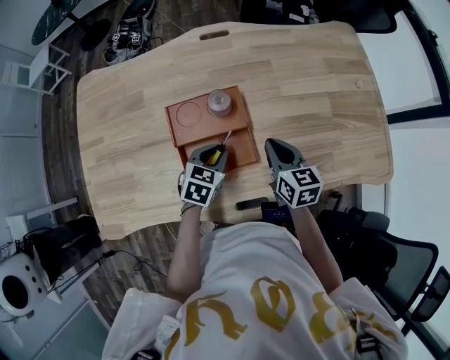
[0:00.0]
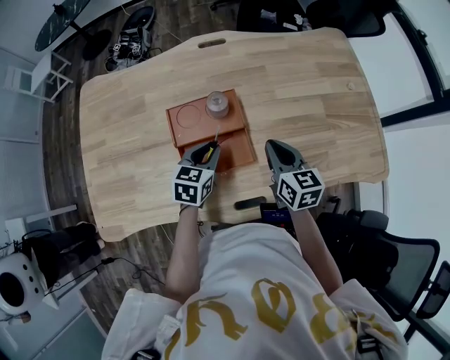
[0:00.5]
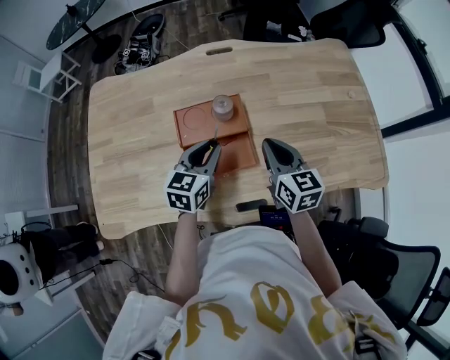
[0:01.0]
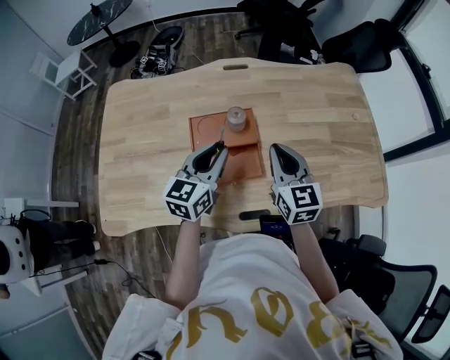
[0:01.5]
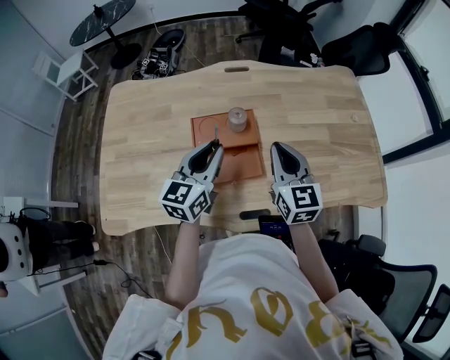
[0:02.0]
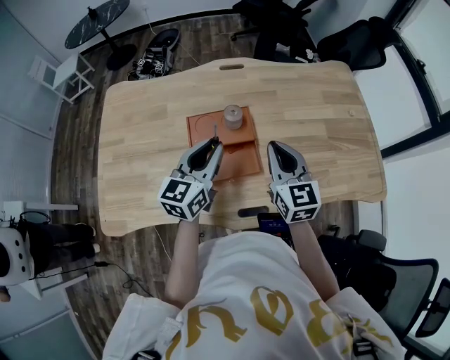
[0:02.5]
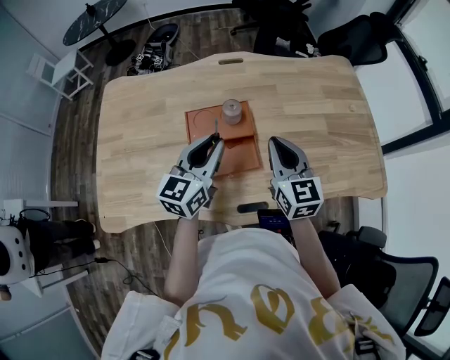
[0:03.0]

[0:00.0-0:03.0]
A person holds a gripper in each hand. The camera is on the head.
0:00.0 to 0:01.5: The grippers both shift upward by roughly 15 cm. The left gripper points its fingers roughly 30 degrees further upward; the right gripper swivels approximately 20 degrees.
0:01.5 to 0:03.0: There are only small adjustments of the grippers.

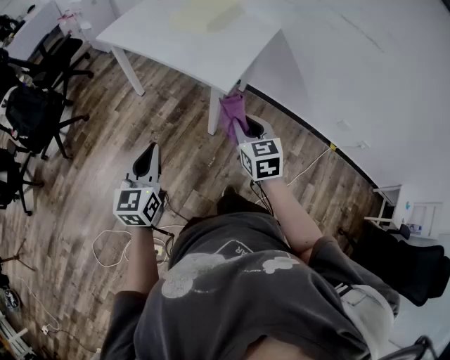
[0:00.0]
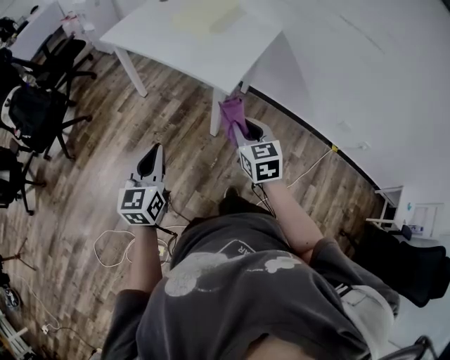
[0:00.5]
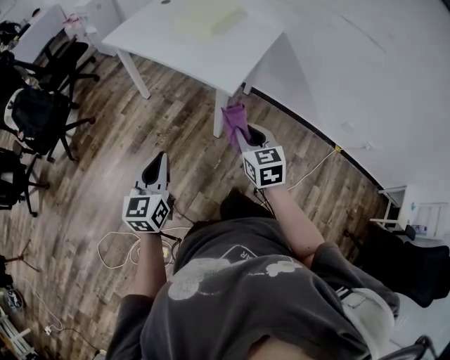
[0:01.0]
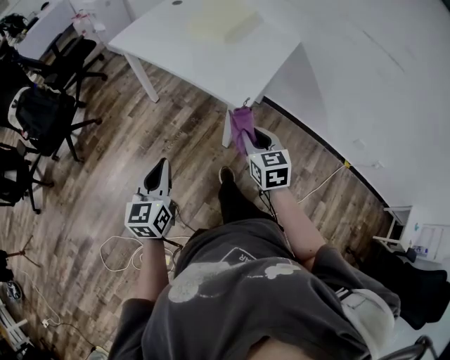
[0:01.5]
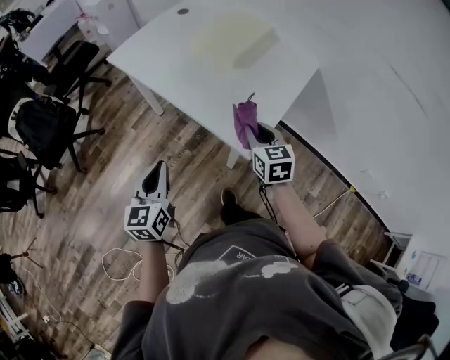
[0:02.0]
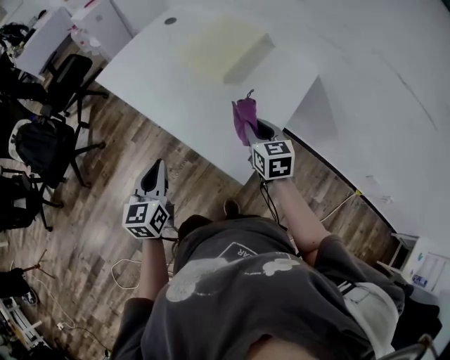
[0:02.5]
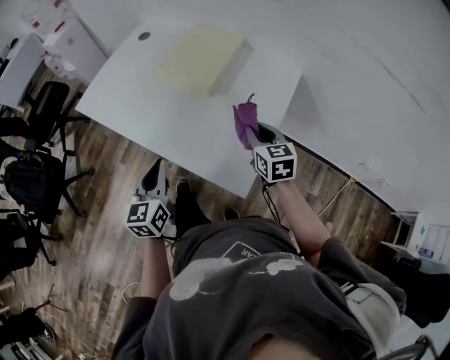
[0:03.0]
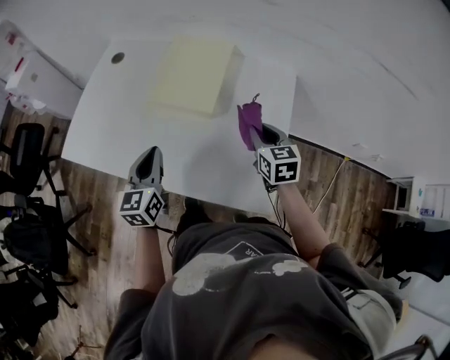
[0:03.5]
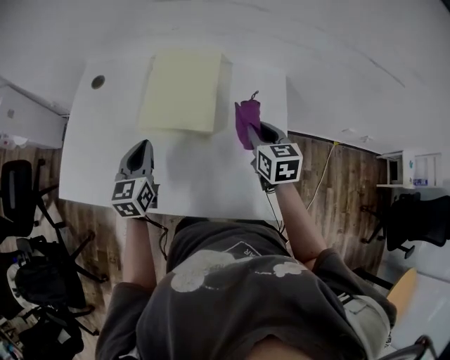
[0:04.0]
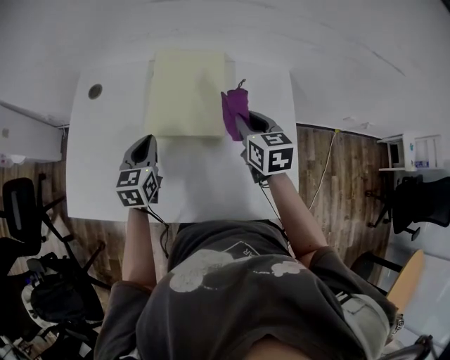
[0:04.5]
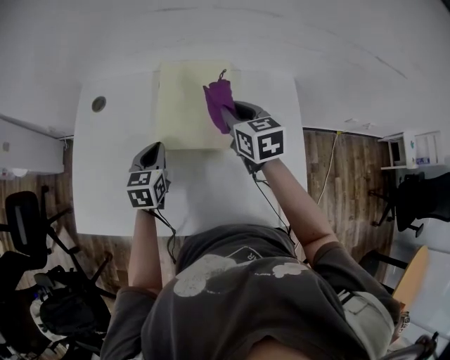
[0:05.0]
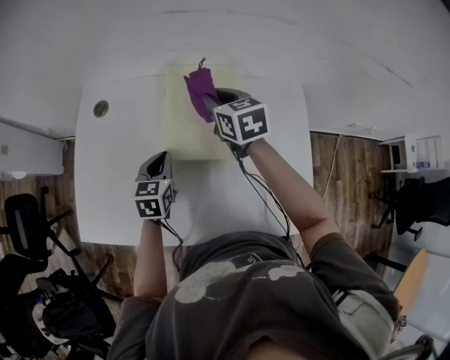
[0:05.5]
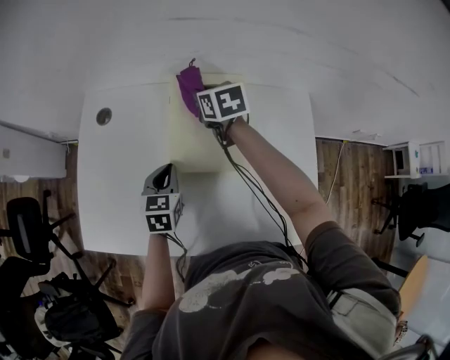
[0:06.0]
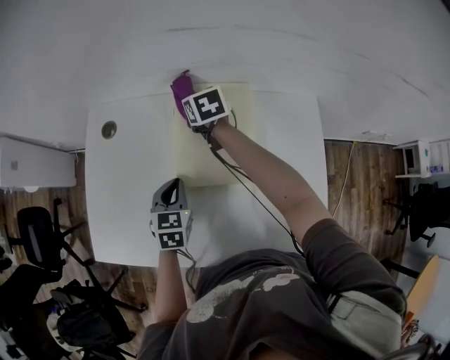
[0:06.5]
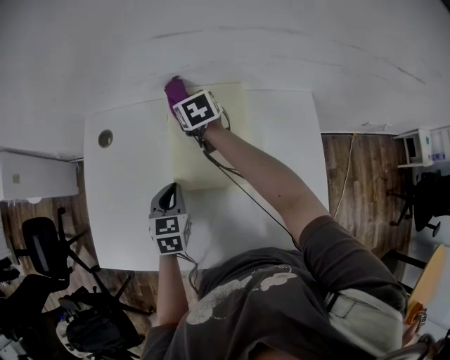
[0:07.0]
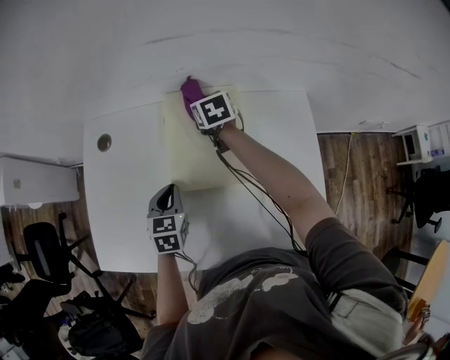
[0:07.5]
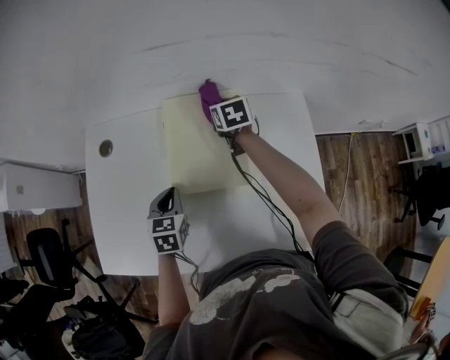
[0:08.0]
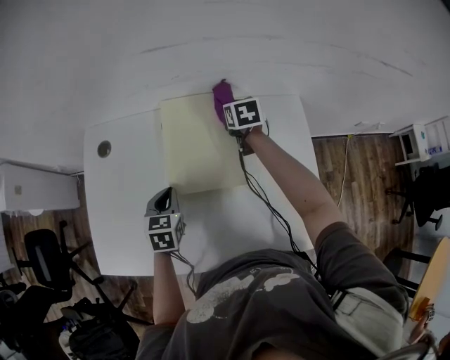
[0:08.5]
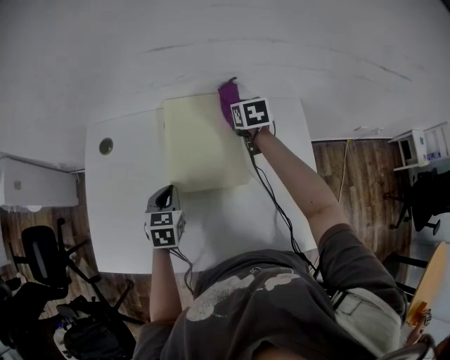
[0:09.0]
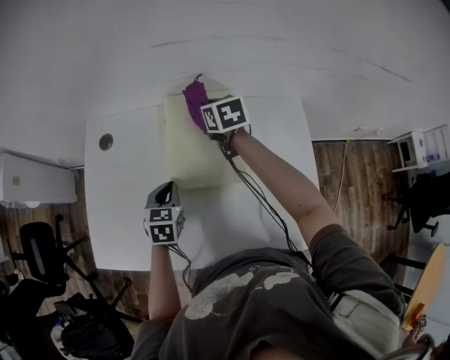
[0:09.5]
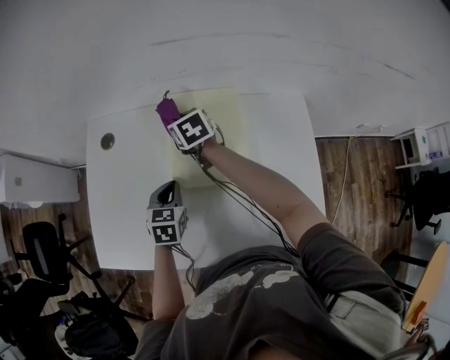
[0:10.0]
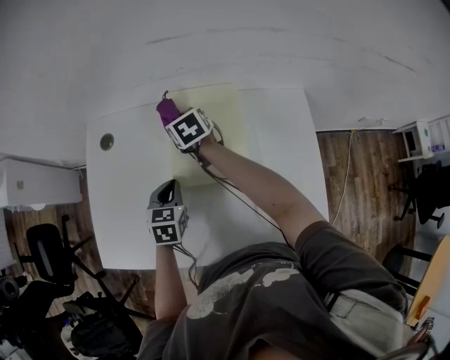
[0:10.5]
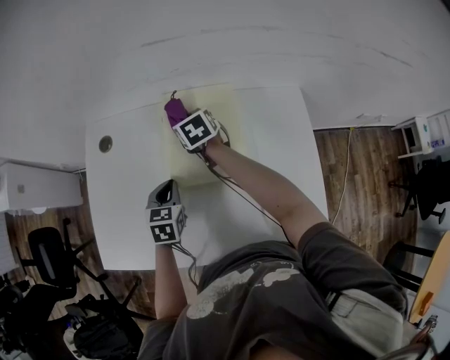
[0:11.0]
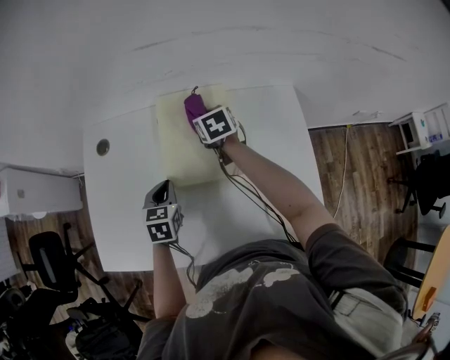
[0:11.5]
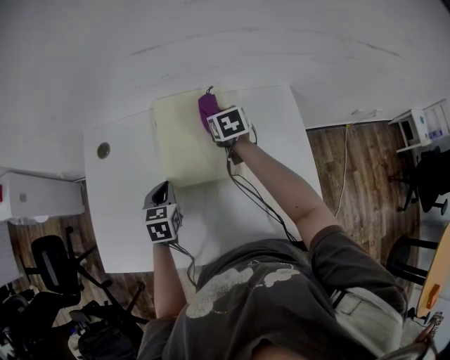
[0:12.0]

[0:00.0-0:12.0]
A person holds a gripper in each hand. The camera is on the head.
0:00.0 to 0:02.0: The two grippers go roughly 25 cm forward.
0:02.0 to 0:04.0: The left gripper moves approximately 50 cm, and swivels roughly 30 degrees, while the right gripper ends up approximately 30 cm from where it was, and changes its angle by roughly 40 degrees.
0:04.0 to 0:06.0: The right gripper heads forward and to the left, covering approximately 35 cm; the left gripper moves forward and downward, about 10 cm, and swivels some 20 degrees.
0:06.0 to 0:08.0: The right gripper moves to the right, about 10 cm.
0:08.0 to 0:10.0: The right gripper moves to the left, about 15 cm.
0:10.0 to 0:12.0: The right gripper heads to the right, covering some 15 cm.

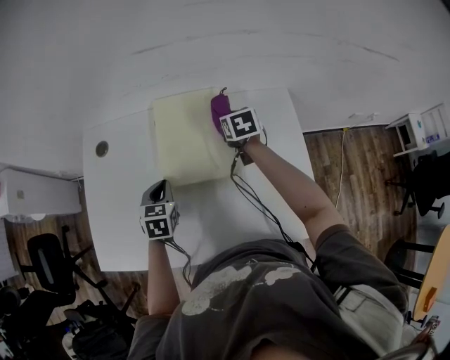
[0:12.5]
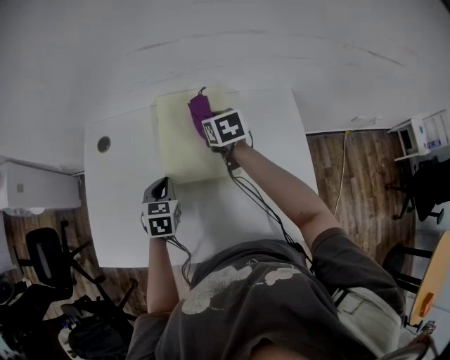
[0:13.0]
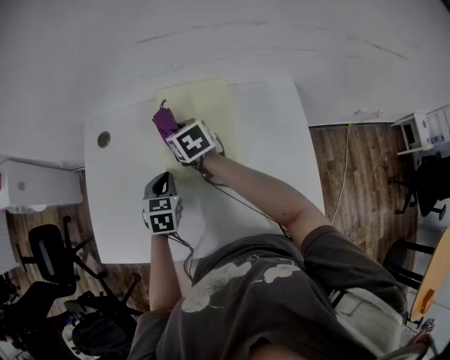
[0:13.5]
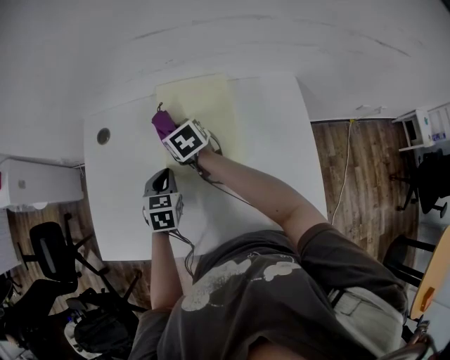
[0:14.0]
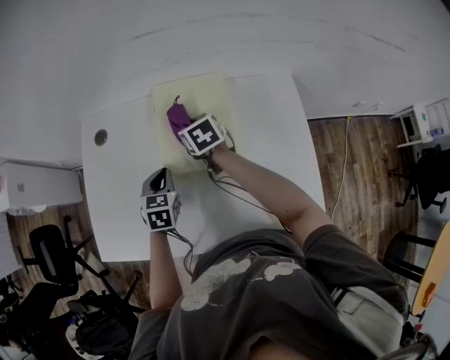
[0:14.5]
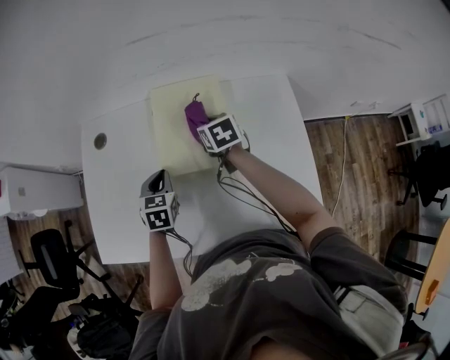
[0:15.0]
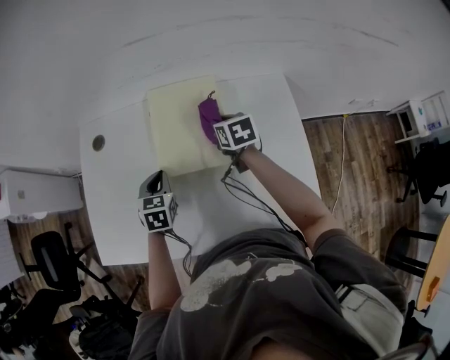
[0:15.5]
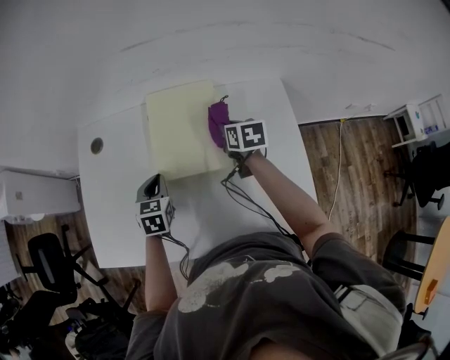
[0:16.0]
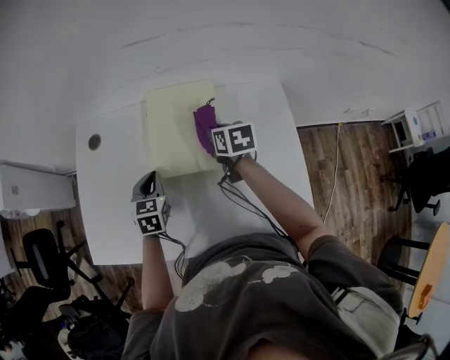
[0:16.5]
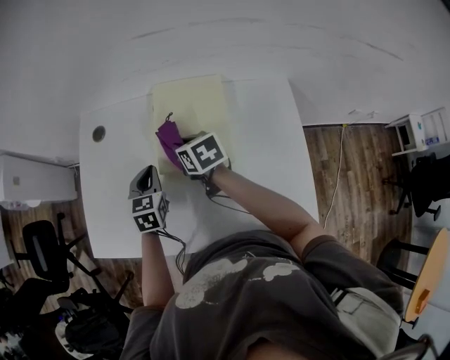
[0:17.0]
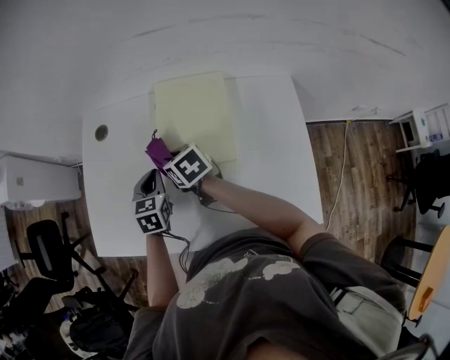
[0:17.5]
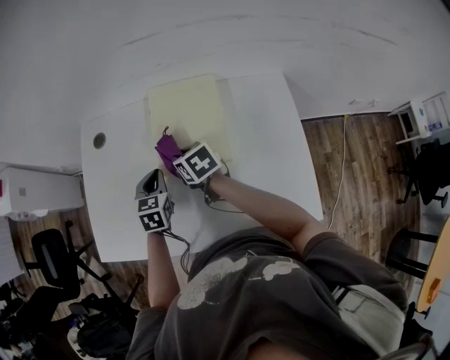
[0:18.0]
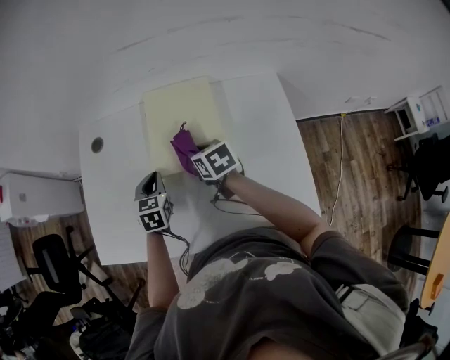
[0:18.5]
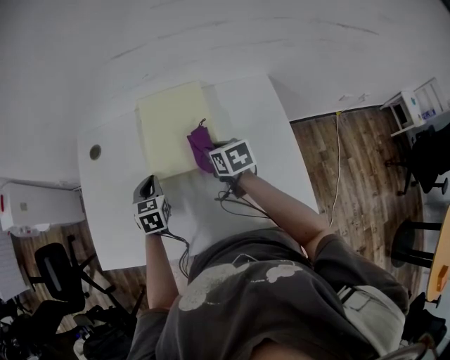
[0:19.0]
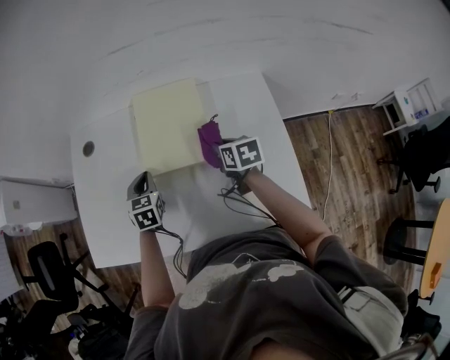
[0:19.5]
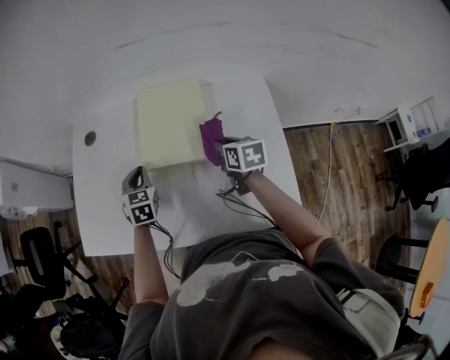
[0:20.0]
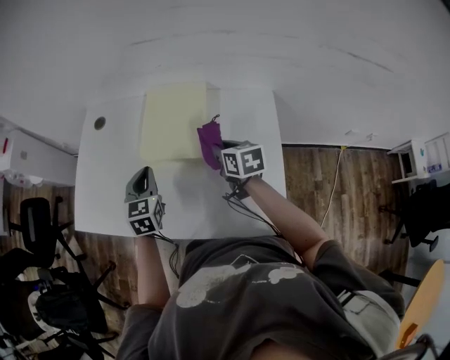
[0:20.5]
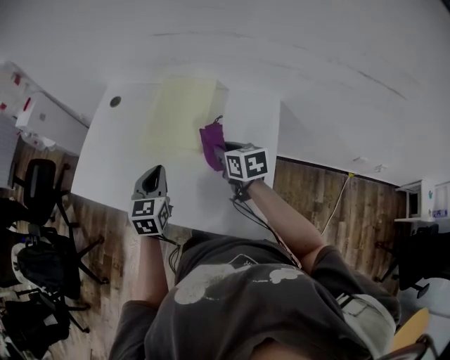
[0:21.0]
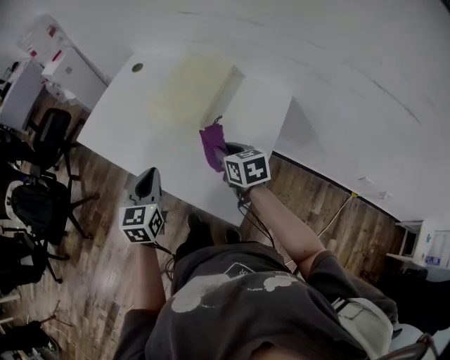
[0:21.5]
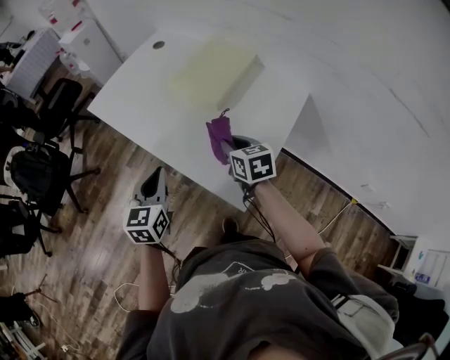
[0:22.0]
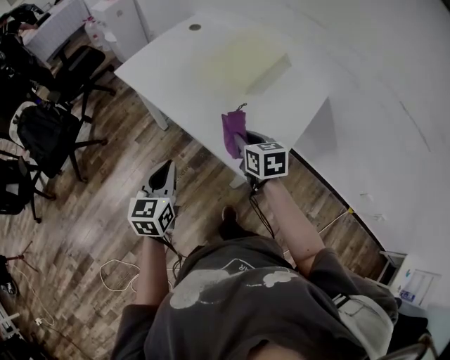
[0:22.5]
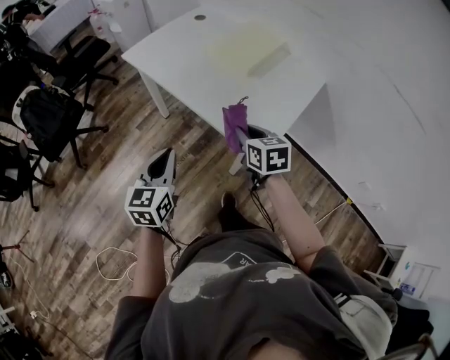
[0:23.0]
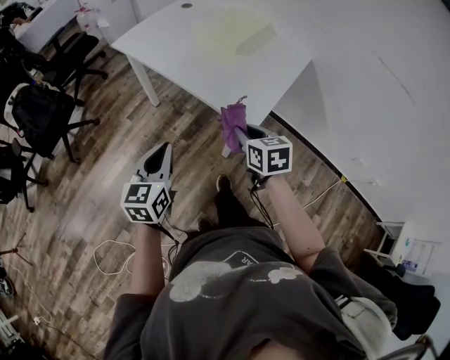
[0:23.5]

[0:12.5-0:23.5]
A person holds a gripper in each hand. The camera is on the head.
0:12.5 to 0:14.5: The right gripper shifts approximately 15 cm to the left.
0:14.5 to 0:16.0: The right gripper shifts approximately 15 cm to the right, and swivels approximately 20 degrees.
0:16.0 to 0:18.0: The right gripper goes roughly 20 cm to the left, and turns by about 30 degrees.
0:18.0 to 0:20.0: The right gripper heads to the right, covering about 20 cm, and swivels approximately 20 degrees.
0:20.0 to 0:21.5: The right gripper moves some 15 cm, and rotates some 40 degrees. Meanwhile the left gripper moves roughly 35 cm, and changes its angle by approximately 30 degrees.
0:21.5 to 0:23.5: The two grippers go some 35 cm backward and to the left.

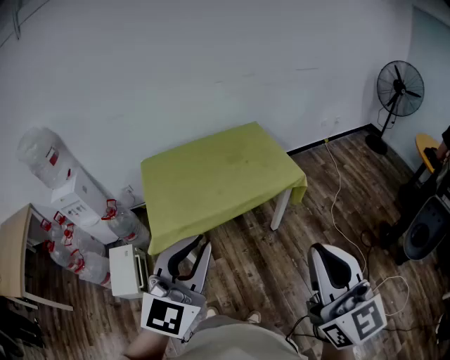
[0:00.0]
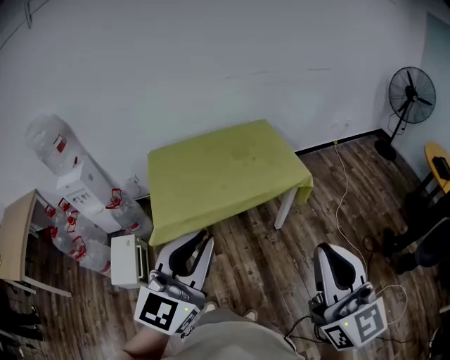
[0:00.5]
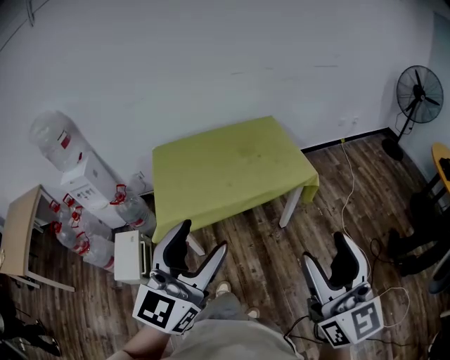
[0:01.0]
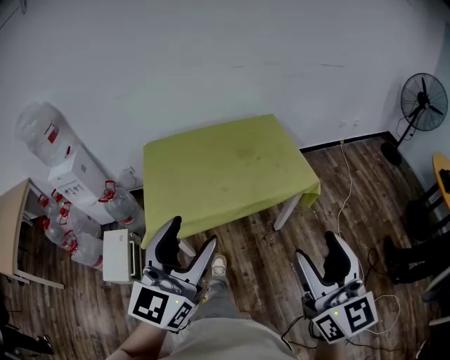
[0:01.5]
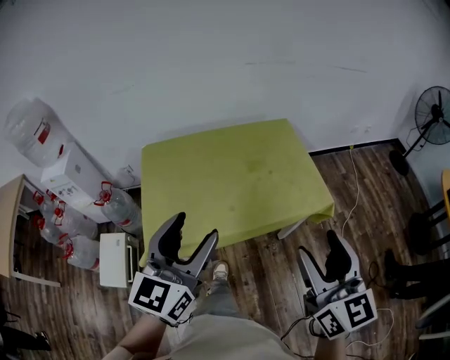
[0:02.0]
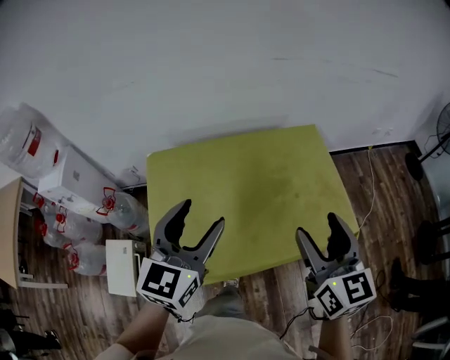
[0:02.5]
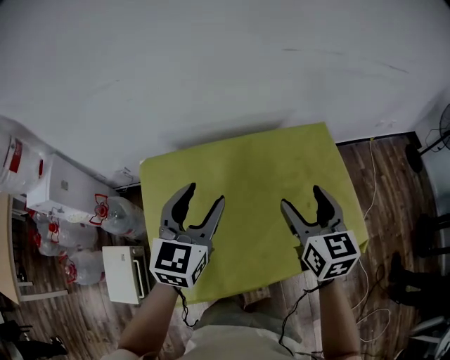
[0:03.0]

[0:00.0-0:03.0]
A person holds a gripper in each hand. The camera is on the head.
0:00.0 to 0:01.5: The left gripper shifts roughly 10 cm forward, and opens up. Meanwhile the right gripper travels forward and downward by roughly 15 cm, and opens up.
0:01.5 to 0:03.0: The pair of grippers is taken forward, roughly 60 cm. The right gripper changes its angle by about 20 degrees.
